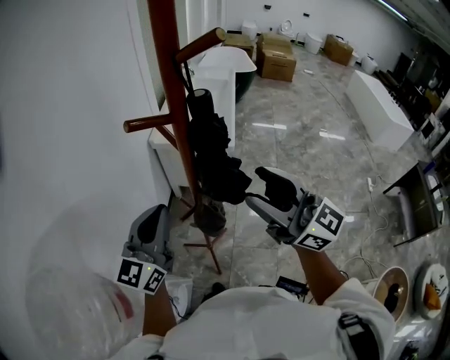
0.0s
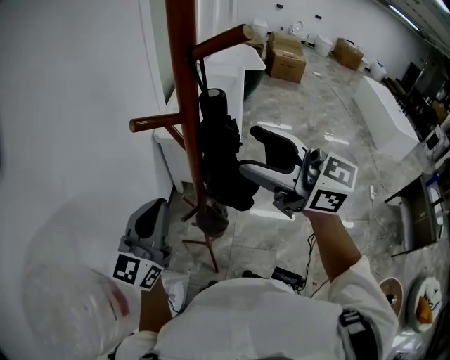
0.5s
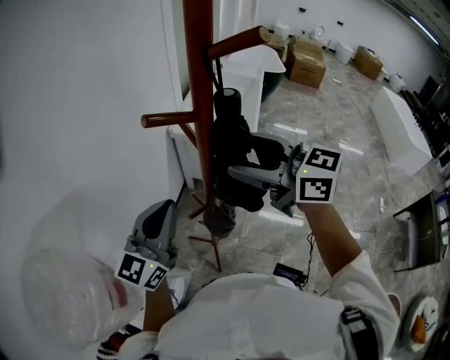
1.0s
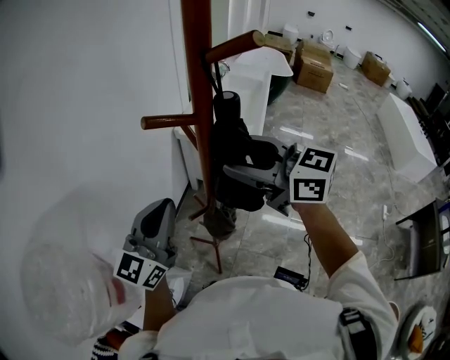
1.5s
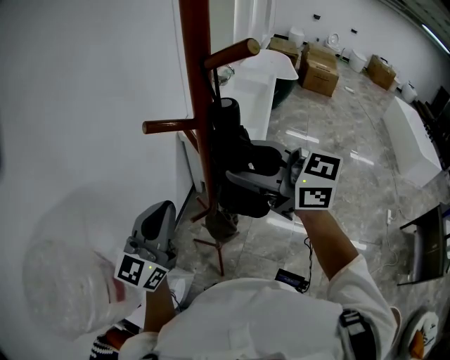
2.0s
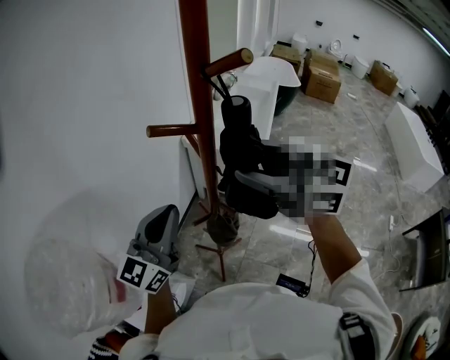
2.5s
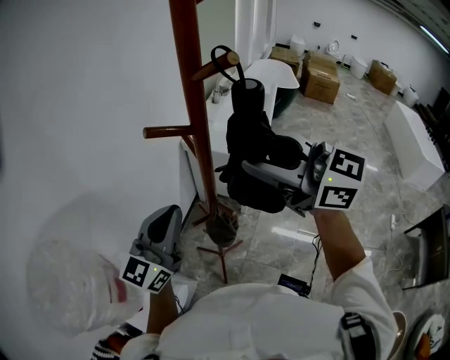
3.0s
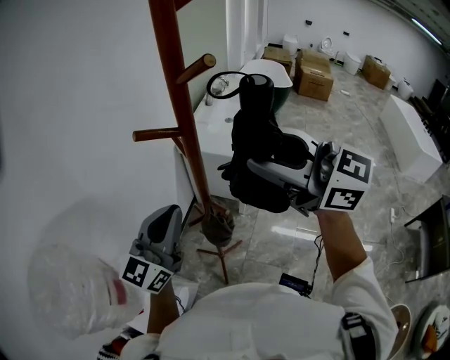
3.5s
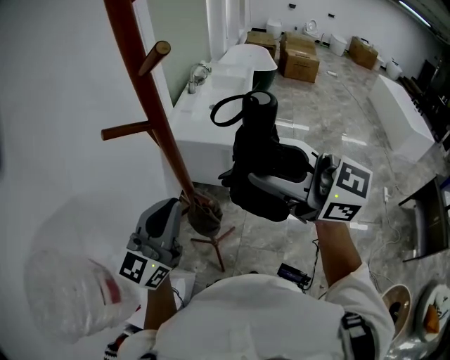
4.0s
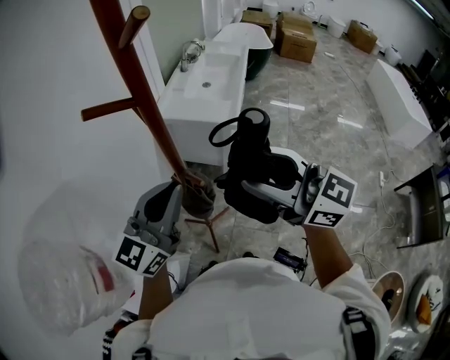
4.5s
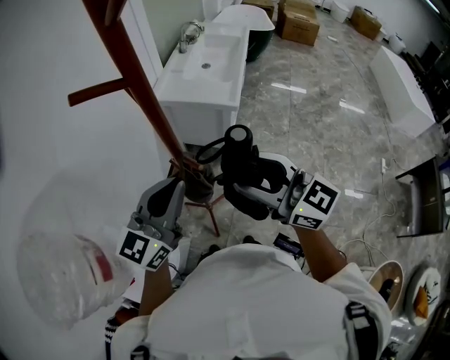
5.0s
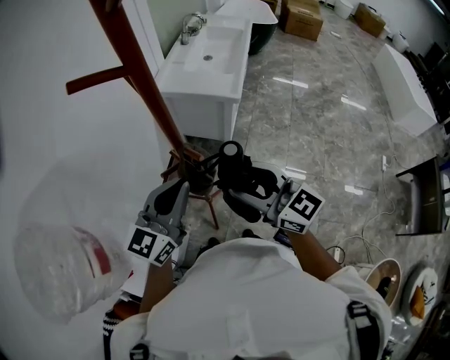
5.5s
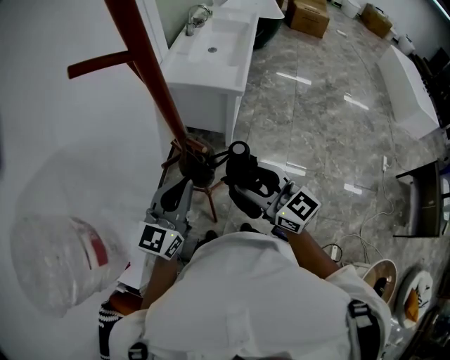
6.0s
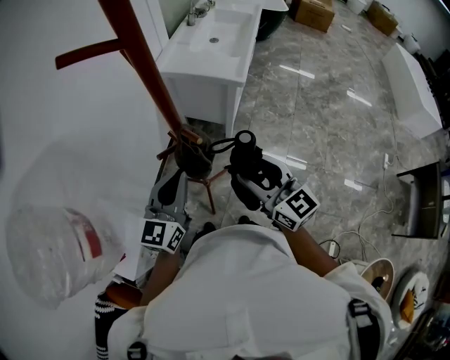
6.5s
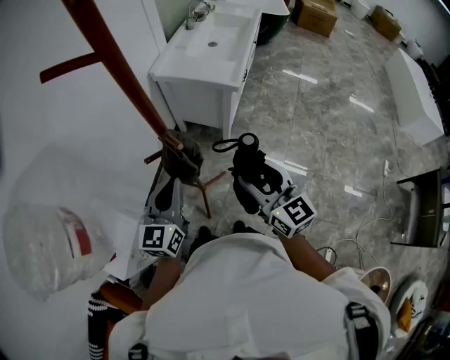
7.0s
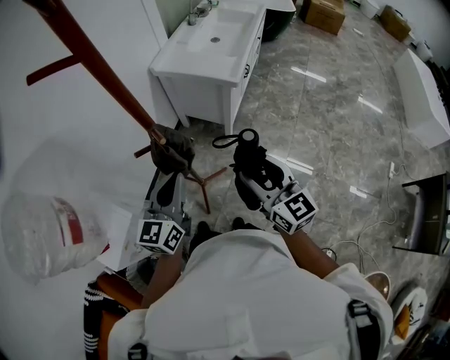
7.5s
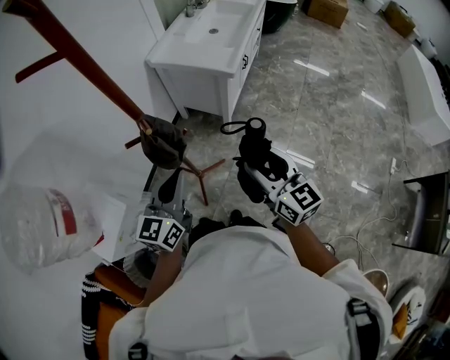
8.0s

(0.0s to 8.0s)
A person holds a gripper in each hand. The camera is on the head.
0.0s - 2.0s: The right gripper shifts about 10 cm forward, and swivels approximately 30 degrees.
2.0s - 4.0s: The left gripper goes approximately 5 cm to the right; the right gripper heads backward and to the right, covering approximately 10 cm.
4.0s - 6.0s: The right gripper travels downward by about 25 cm. Meanwhile the left gripper moves downward, approximately 15 cm.
6.0s - 8.0s: The right gripper moves to the right, approximately 15 cm; the left gripper goes about 10 cm to the right.

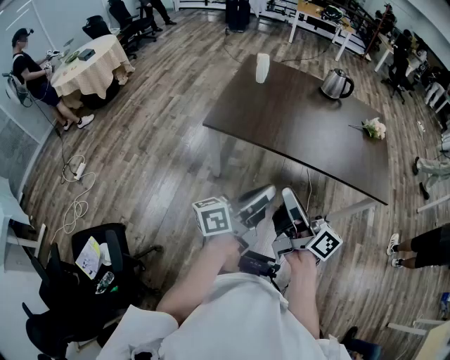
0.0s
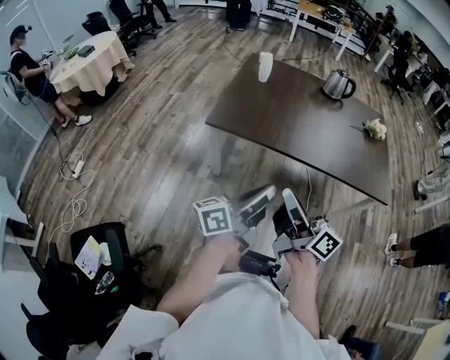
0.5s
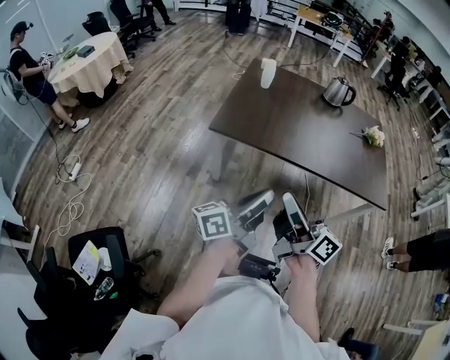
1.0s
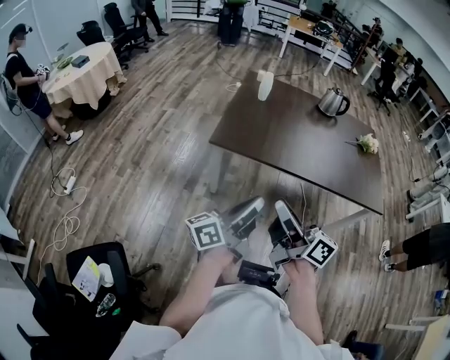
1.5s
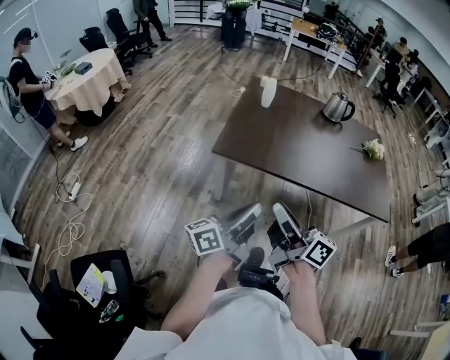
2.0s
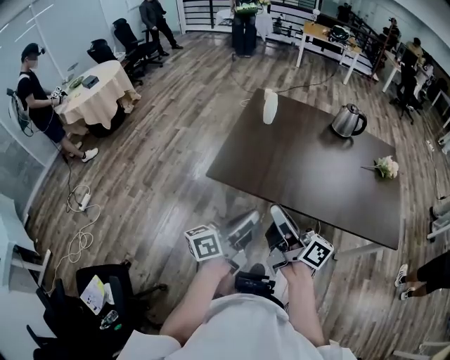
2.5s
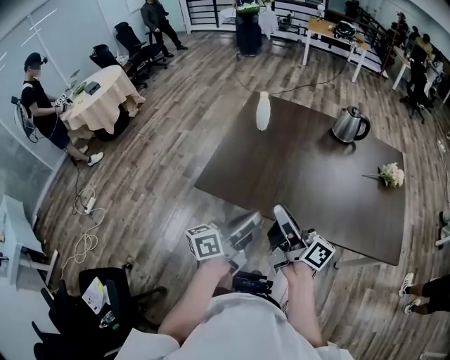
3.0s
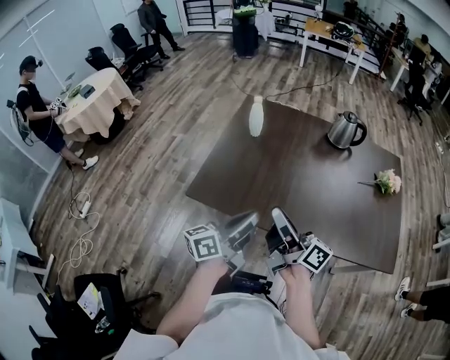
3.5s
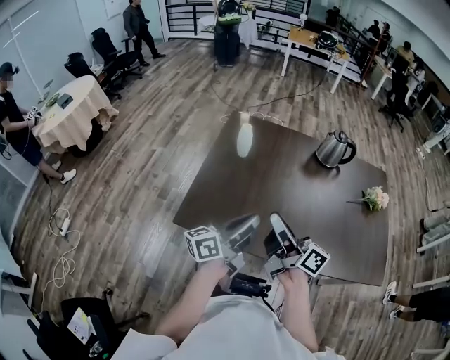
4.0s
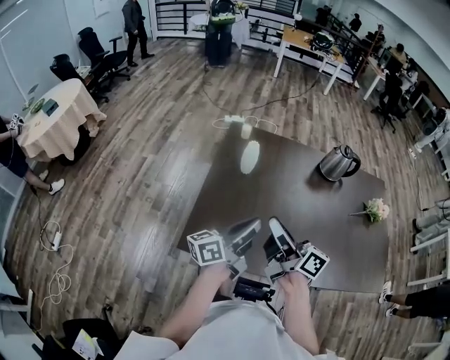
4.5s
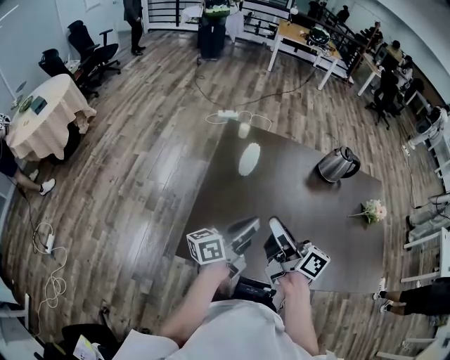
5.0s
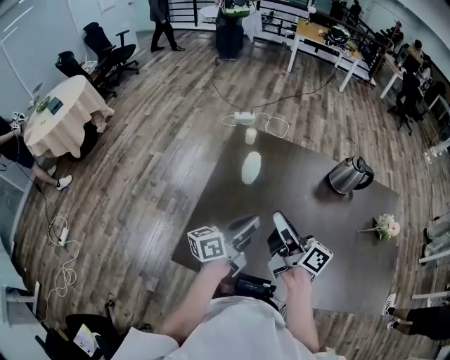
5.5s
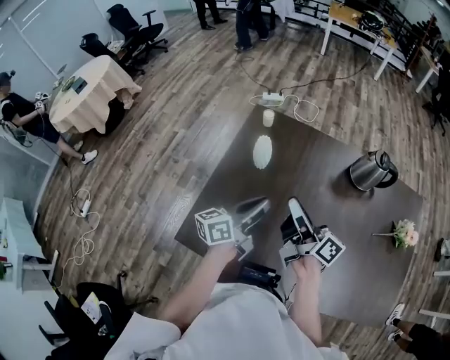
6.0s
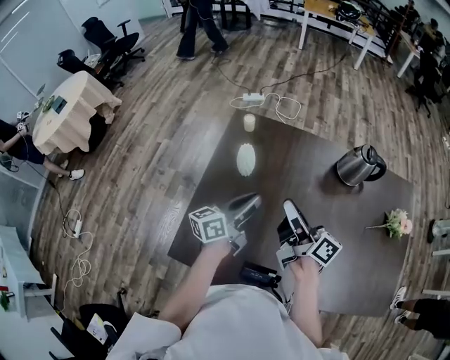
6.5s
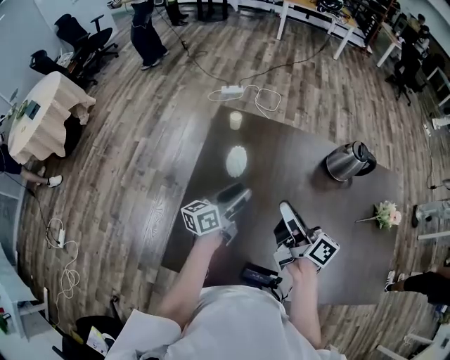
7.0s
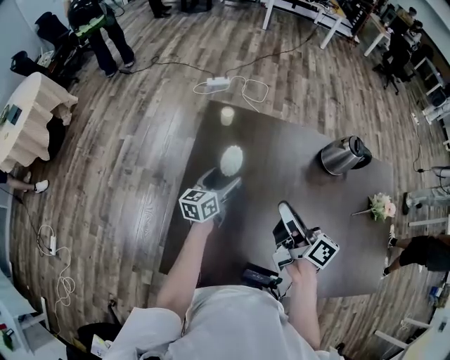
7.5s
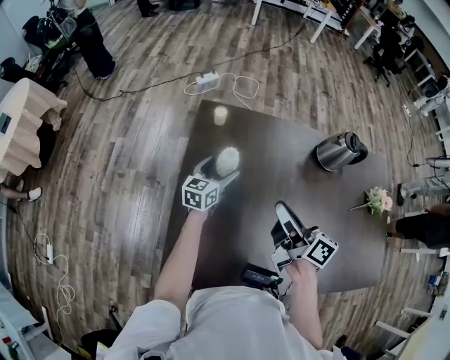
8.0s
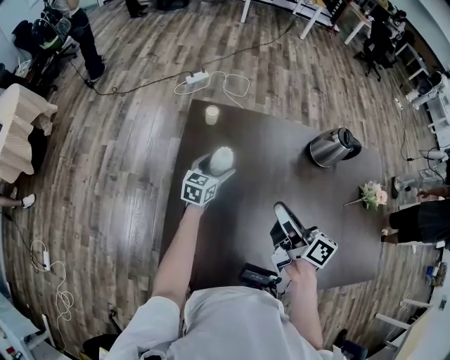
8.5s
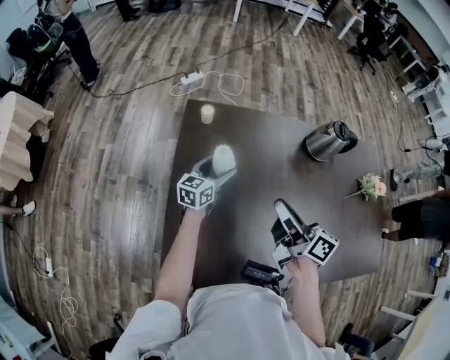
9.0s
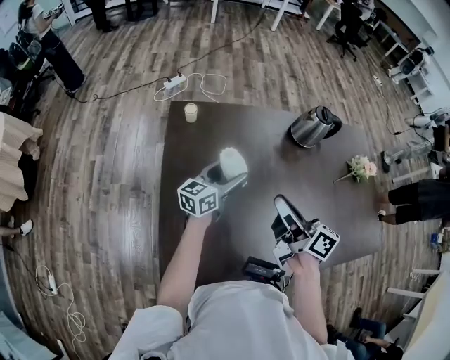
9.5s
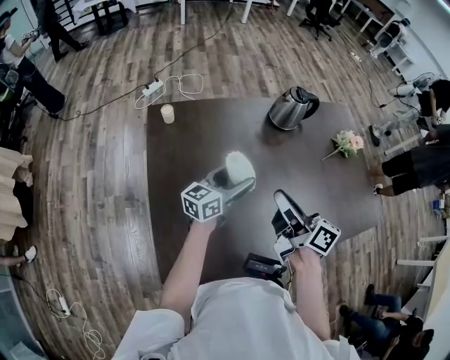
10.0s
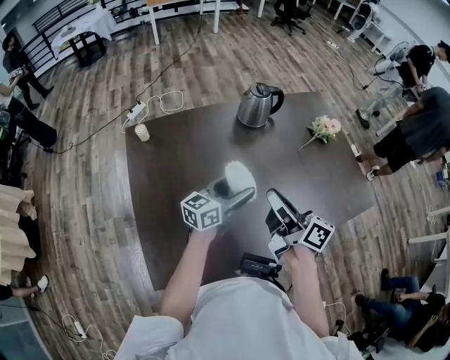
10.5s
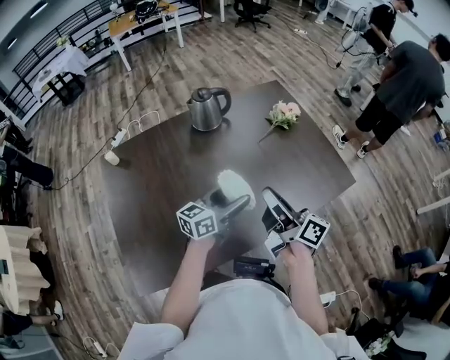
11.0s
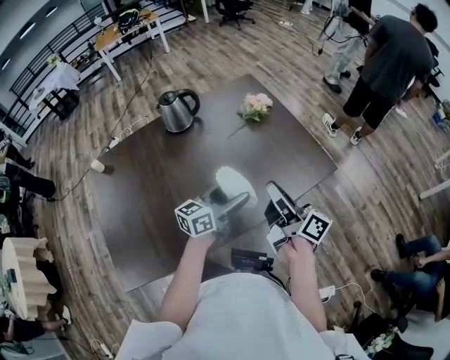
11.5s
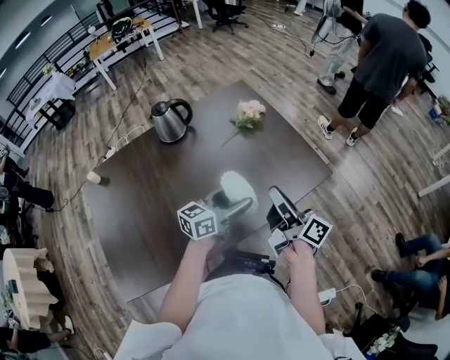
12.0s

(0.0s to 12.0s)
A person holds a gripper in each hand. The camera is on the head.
0.0s - 2.0s: Both grippers travel together to the left, some 10 cm.
2.0s - 4.0s: Both grippers travel together forward, about 35 cm.
4.0s - 6.0s: Both grippers move forward, roughly 20 cm.
6.0s - 8.0s: The left gripper goes approximately 25 cm forward and downward, turns by some 30 degrees, and opens.
8.0s - 10.0s: The left gripper moves to the right, upward and backward, some 20 cm, and turns by approximately 30 degrees, while the right gripper heads to the right and backward, covering approximately 10 cm.
10.0s - 12.0s: Both grippers are carried to the right, approximately 40 cm. The right gripper turns by approximately 30 degrees. The left gripper swivels about 30 degrees.

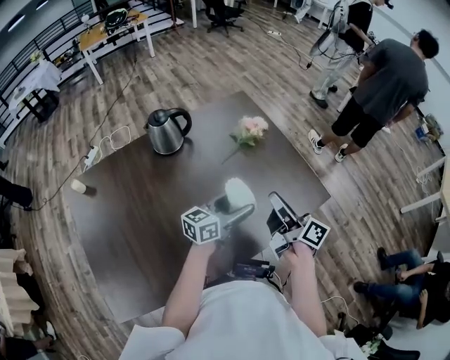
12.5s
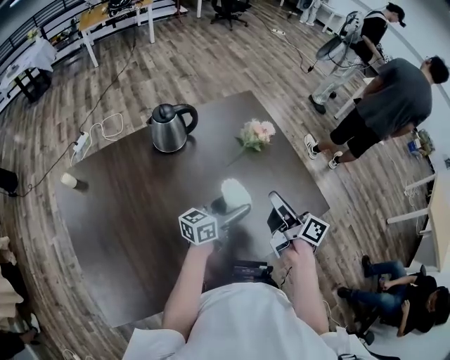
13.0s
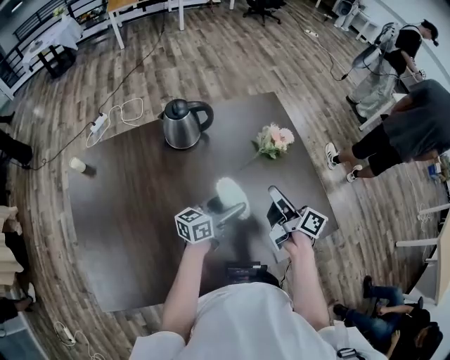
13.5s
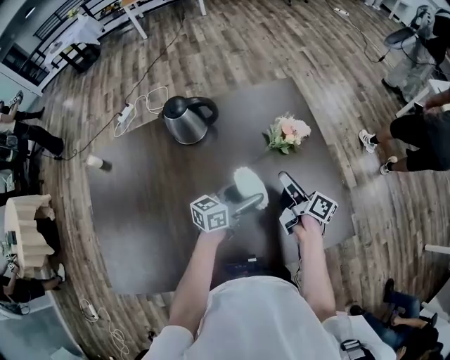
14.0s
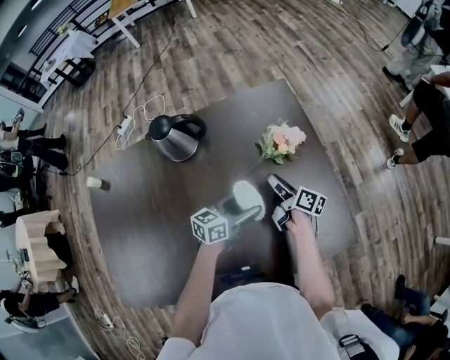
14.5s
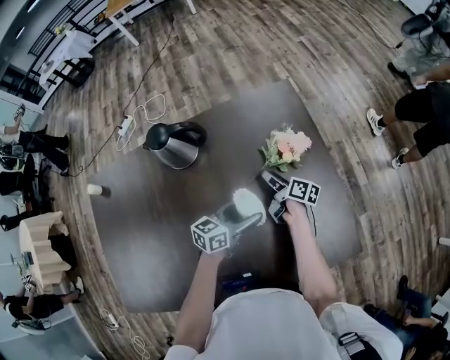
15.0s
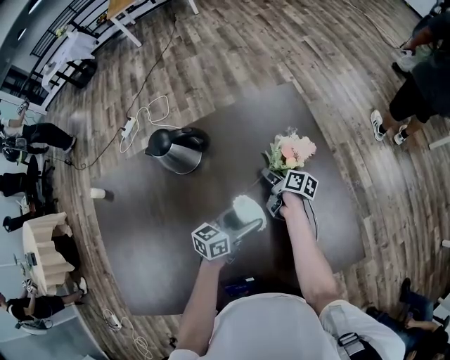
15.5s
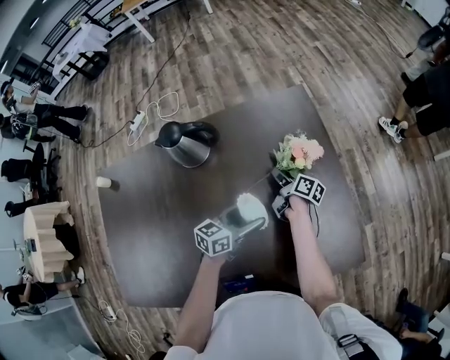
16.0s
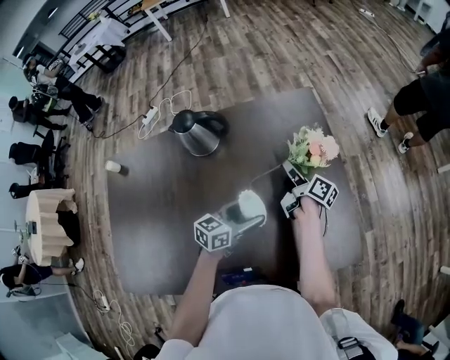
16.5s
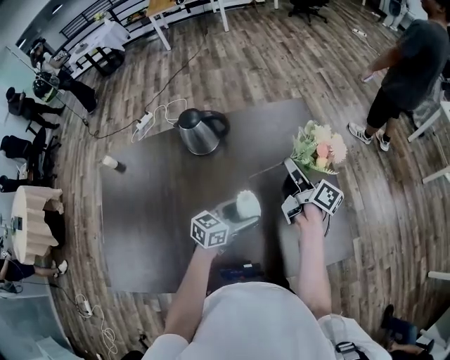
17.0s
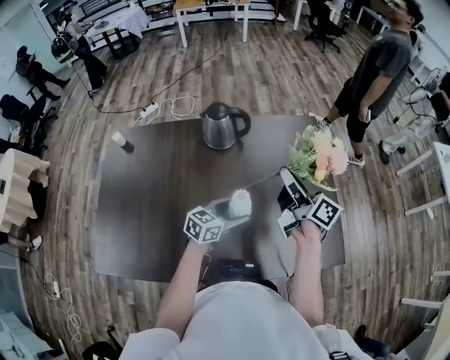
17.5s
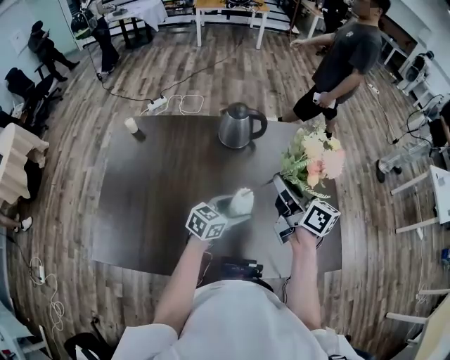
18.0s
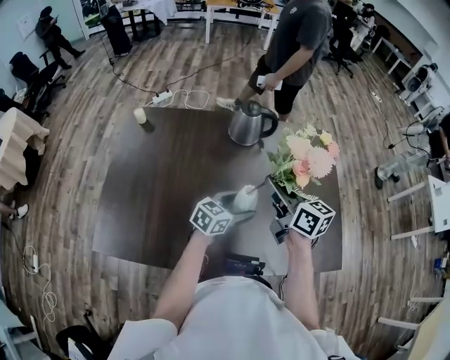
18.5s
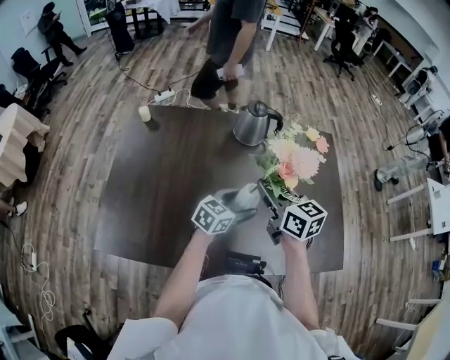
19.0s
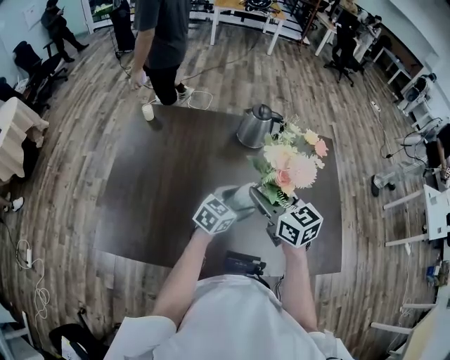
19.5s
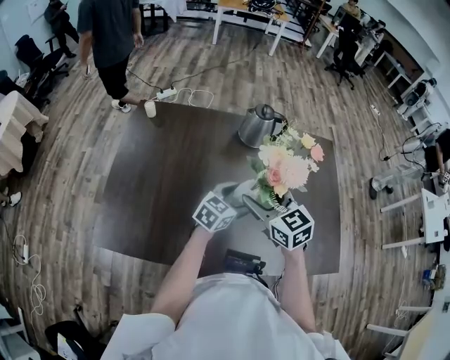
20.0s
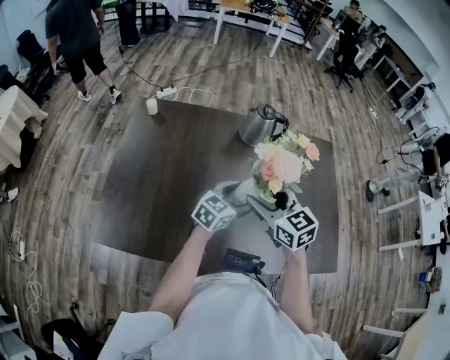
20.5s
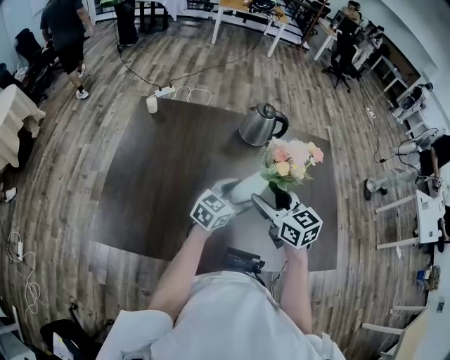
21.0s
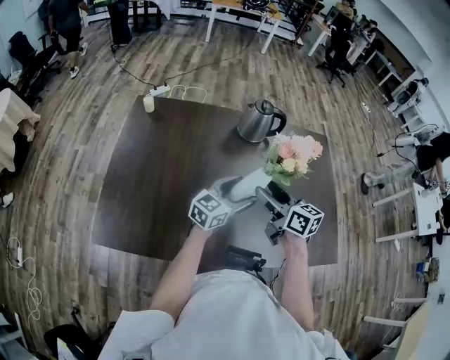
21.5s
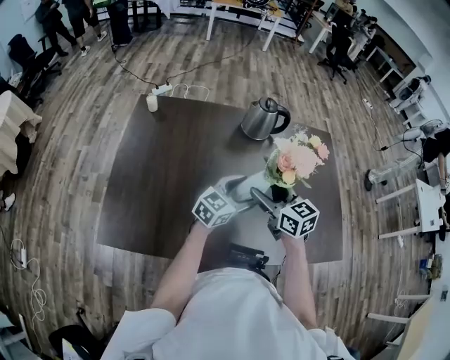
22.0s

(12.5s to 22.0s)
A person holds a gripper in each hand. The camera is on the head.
12.5s - 14.5s: The left gripper goes about 20 cm forward and downward; the right gripper shifts some 35 cm forward and downward, swivels approximately 30 degrees, and opens its fingers.
14.5s - 16.5s: The right gripper moves forward, roughly 5 cm, and reaches about 10 cm downward, then returns.
16.5s - 18.0s: The left gripper goes roughly 15 cm to the left and backward; the right gripper shifts some 30 cm upward, backward and to the left, and swivels roughly 40 degrees.
18.0s - 20.0s: The left gripper goes some 5 cm to the left, while the right gripper shifts some 15 cm to the left and backward, twists roughly 40 degrees counterclockwise, seen from behind, and opens its fingers.
